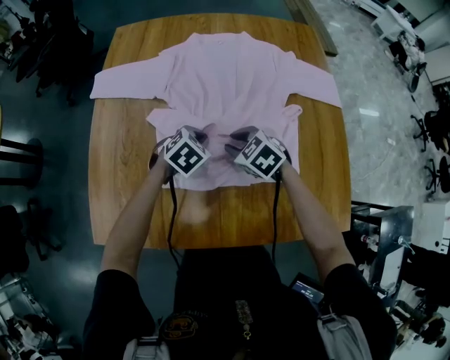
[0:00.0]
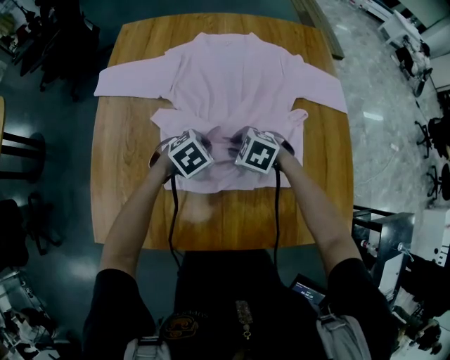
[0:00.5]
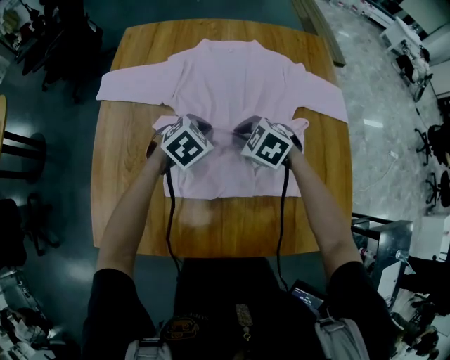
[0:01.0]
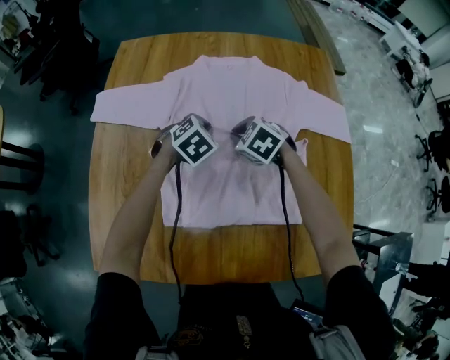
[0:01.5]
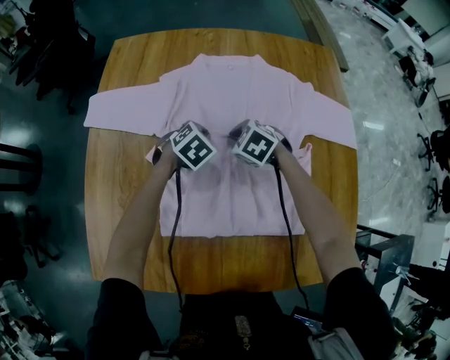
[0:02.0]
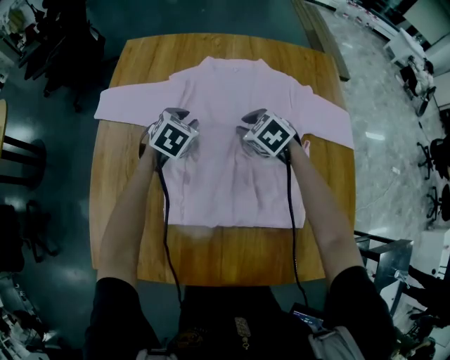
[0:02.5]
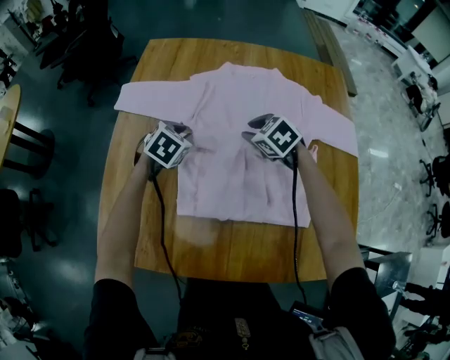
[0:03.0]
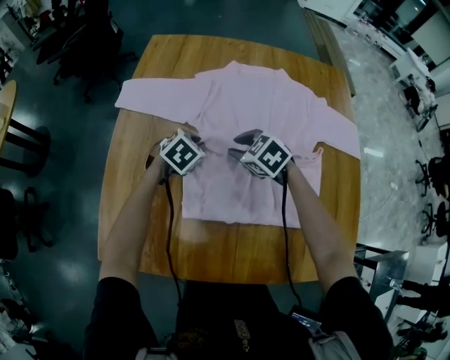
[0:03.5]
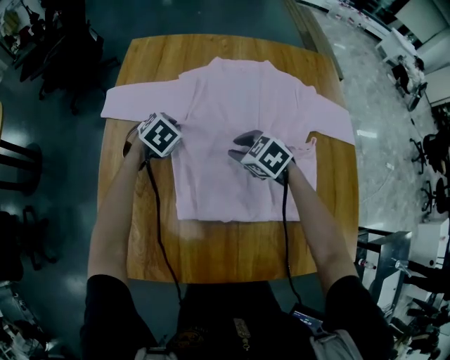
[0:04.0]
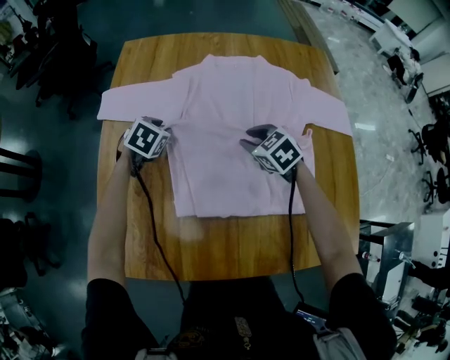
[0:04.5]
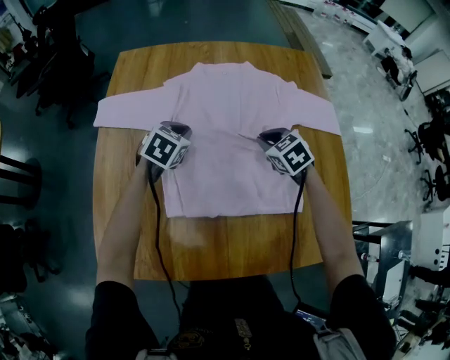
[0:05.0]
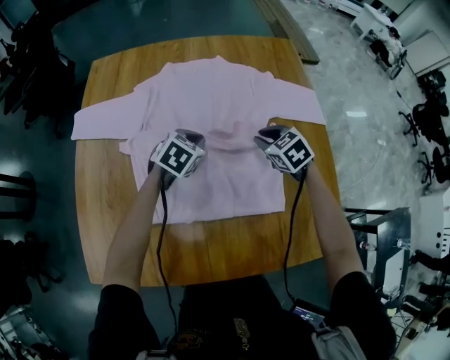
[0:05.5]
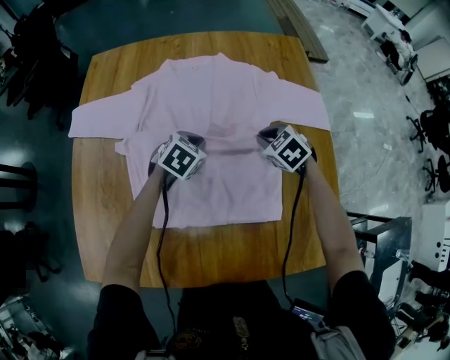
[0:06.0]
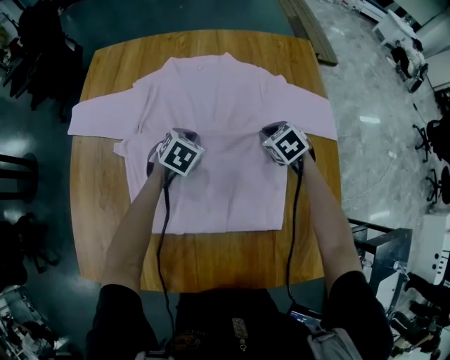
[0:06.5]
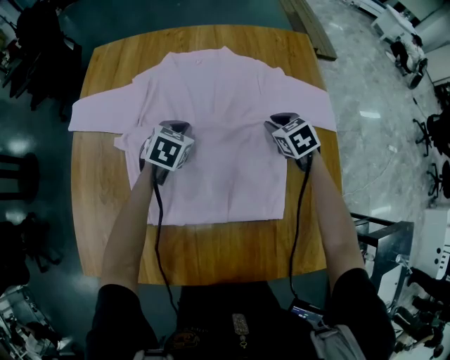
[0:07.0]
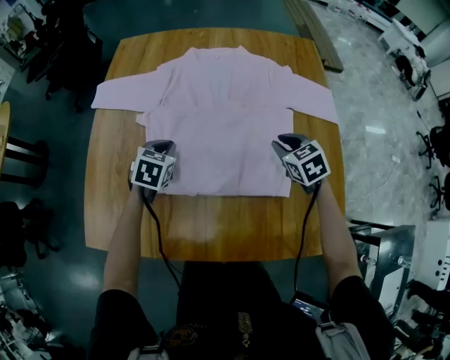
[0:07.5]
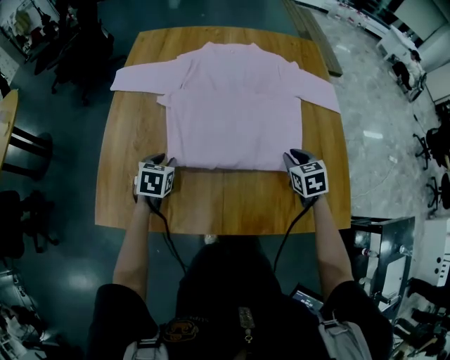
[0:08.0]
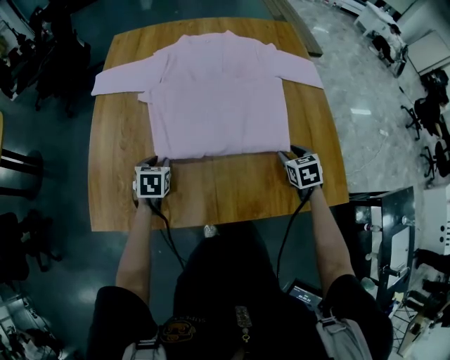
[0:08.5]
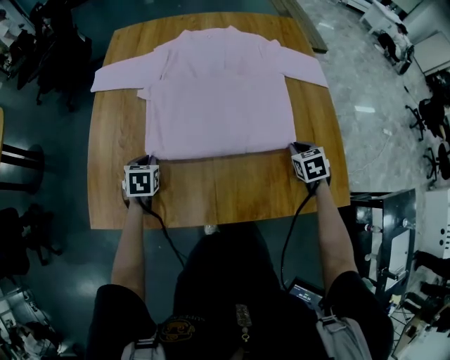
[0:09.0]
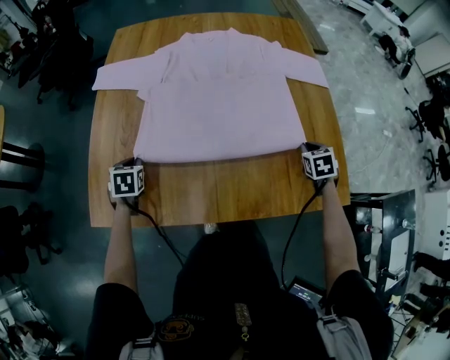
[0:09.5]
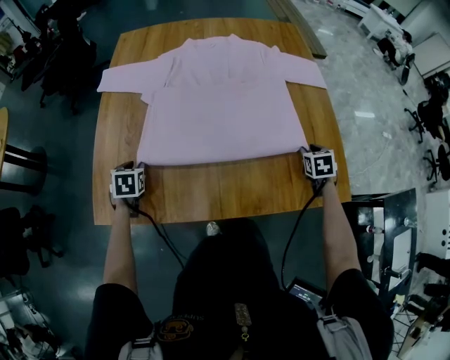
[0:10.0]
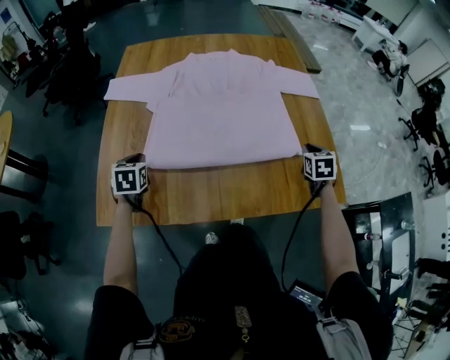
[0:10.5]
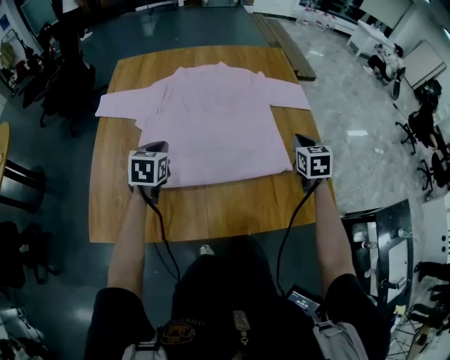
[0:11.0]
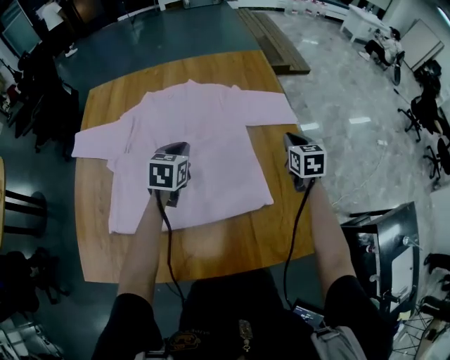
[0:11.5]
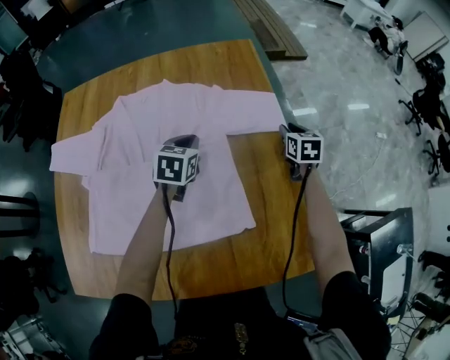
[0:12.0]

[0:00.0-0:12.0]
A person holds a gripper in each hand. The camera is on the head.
0:00.0 to 0:02.0: The two grippers go roughly 15 cm forward.
0:02.0 to 0:04.0: The right gripper heads backward, to the left and upward, covering about 10 cm, and opens its fingers. Meanwhile the left gripper travels to the left by approximately 15 cm.
0:04.0 to 0:06.0: Both grippers travel together to the right, about 25 cm. The right gripper closes its fingers.
0:06.0 to 0:08.0: The left gripper moves to the left and backward, roughly 30 cm, turns by roughly 30 degrees, and opens, while the right gripper is displaced backward by some 20 cm, and turns by about 30 degrees.
0:08.0 to 0:10.0: The left gripper travels to the left by about 10 cm. The right gripper travels to the right by approximately 10 cm, and turns by roughly 20 degrees.
0:10.0 to 0:12.0: The right gripper is displaced forward and to the right by about 35 cm, rotates roughly 20 degrees, and closes and opens again, while the left gripper shifts roughly 60 cm to the right and forward, changes its angle by approximately 30 degrees, and closes up.

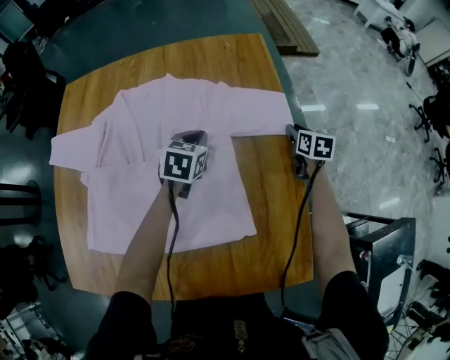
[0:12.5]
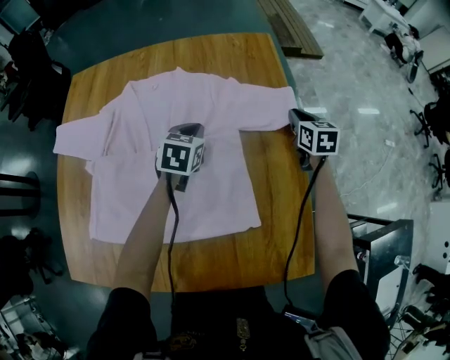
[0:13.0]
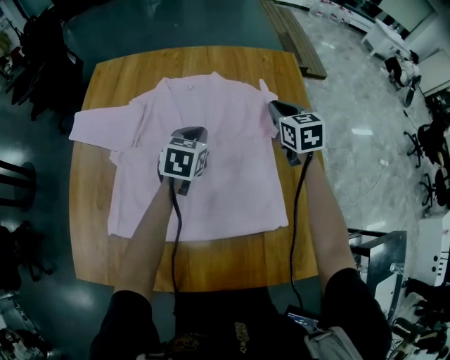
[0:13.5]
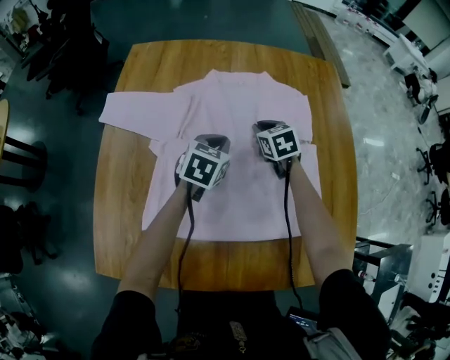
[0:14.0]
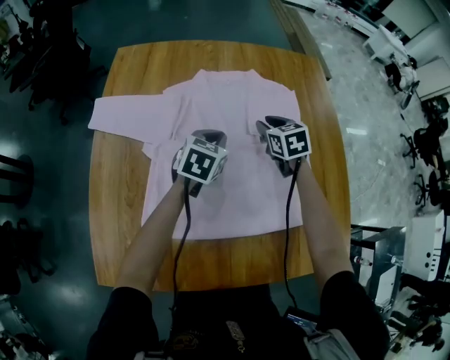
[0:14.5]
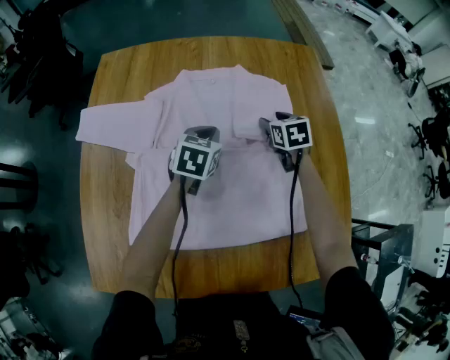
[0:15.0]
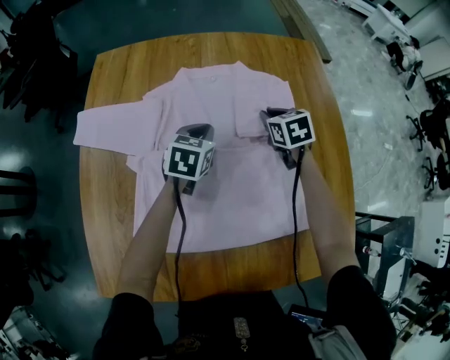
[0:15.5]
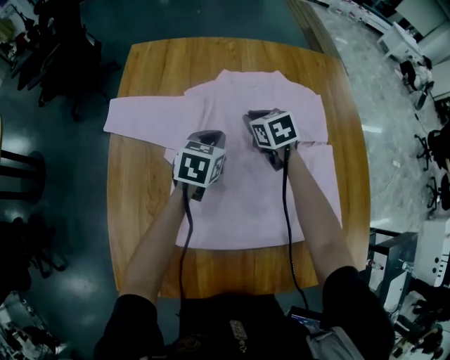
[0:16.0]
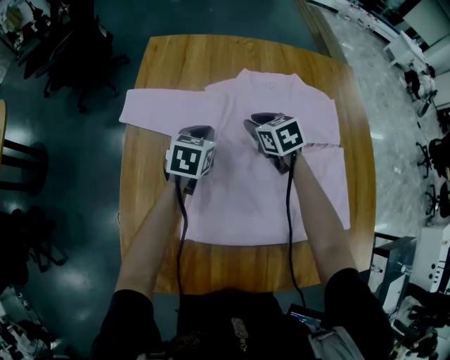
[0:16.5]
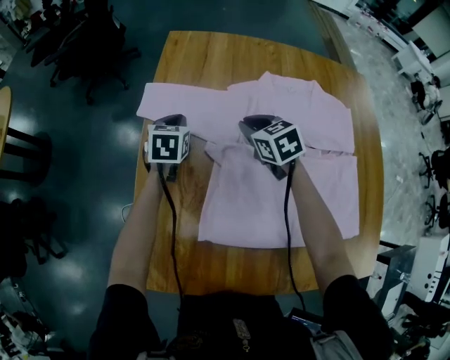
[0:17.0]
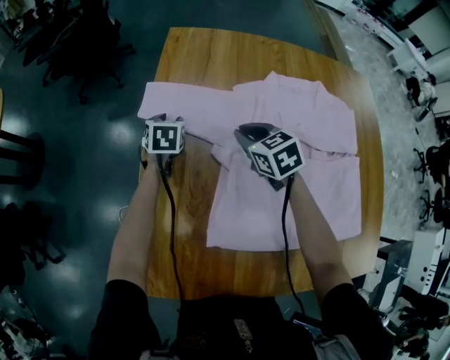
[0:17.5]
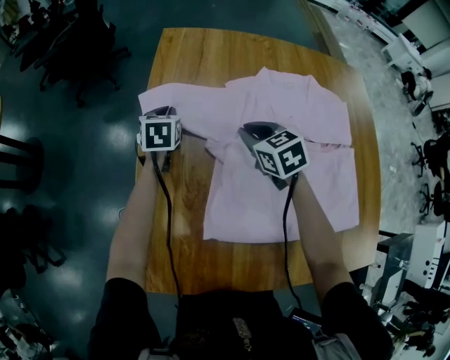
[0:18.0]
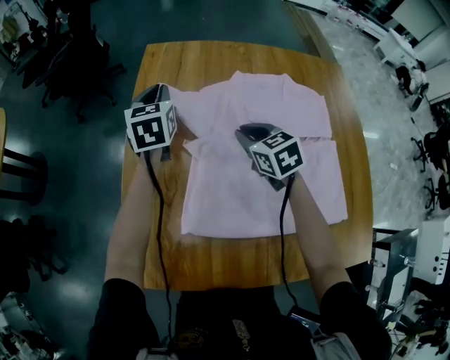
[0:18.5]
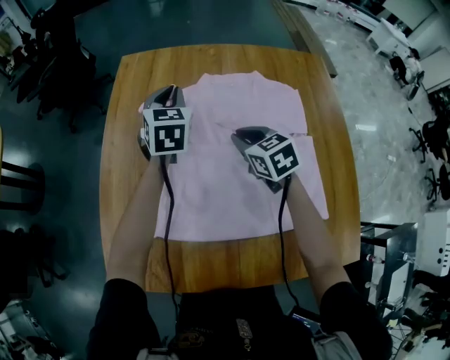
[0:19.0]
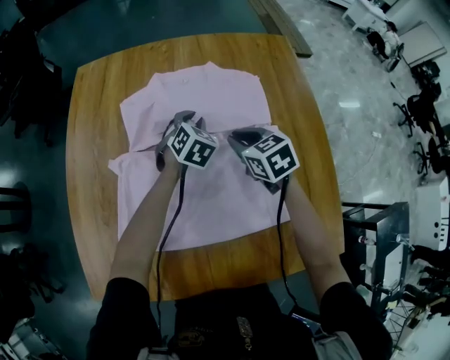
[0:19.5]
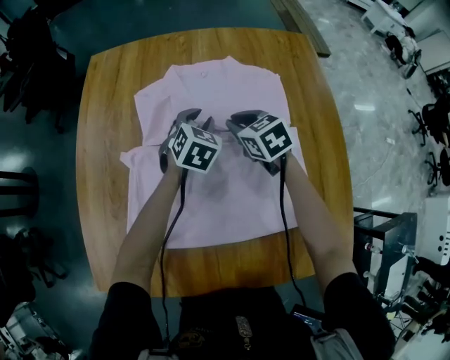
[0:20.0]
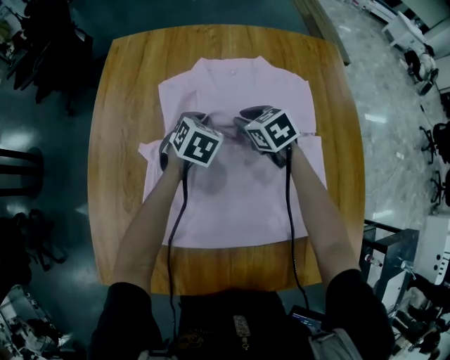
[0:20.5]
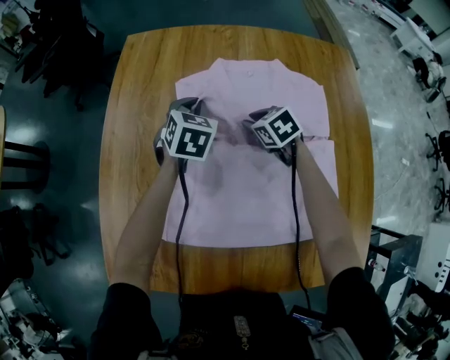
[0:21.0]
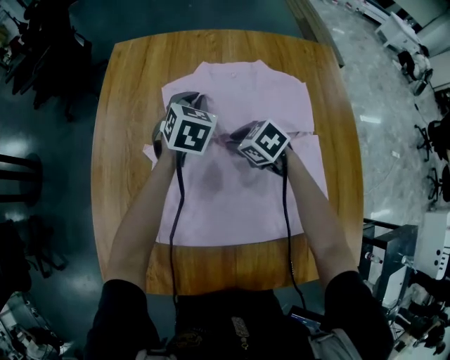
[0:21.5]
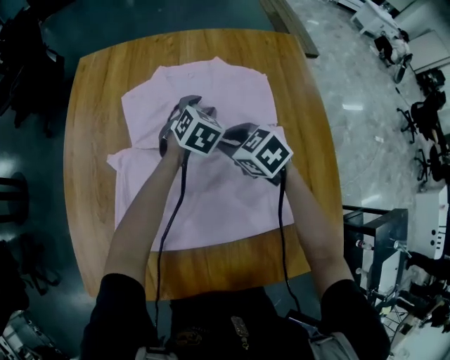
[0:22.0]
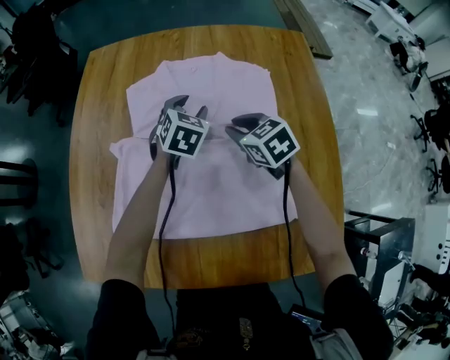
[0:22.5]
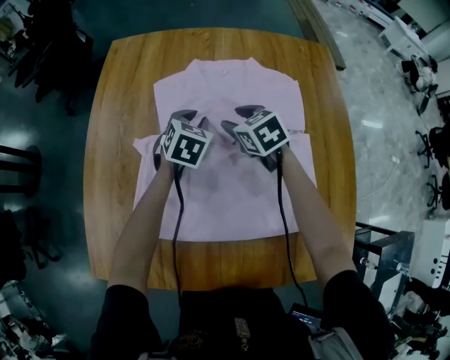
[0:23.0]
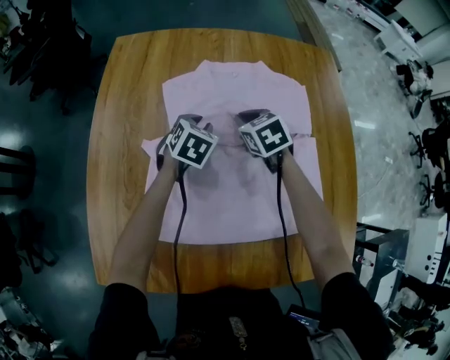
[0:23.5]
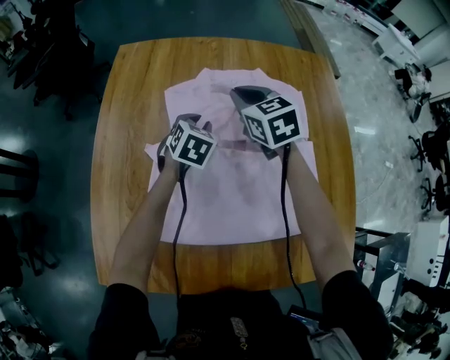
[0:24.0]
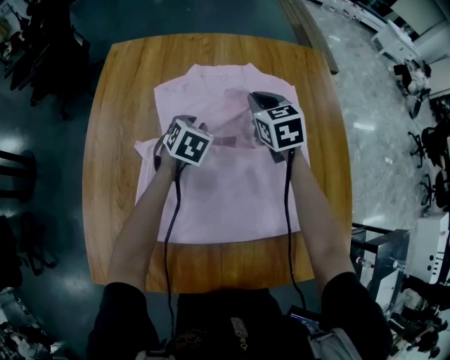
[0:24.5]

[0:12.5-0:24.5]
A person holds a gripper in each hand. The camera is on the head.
0:12.5 to 0:14.5: The left gripper is displaced to the left by some 25 cm; the right gripper heads to the left, covering about 40 cm, and swivels some 30 degrees.
0:14.5 to 0:16.5: Both grippers move to the left, about 20 cm. The right gripper opens and closes again.
0:16.5 to 0:18.5: The left gripper goes roughly 20 cm upward, to the left and forward, swivels approximately 30 degrees, and opens, then closes again. Meanwhile the right gripper goes approximately 10 cm backward and upward, and goes to the left and returns, roughly 15 cm each way.
0:18.5 to 0:20.5: The right gripper shifts approximately 15 cm to the right and downward. Meanwhile the left gripper goes approximately 30 cm to the right and downward, and swivels some 40 degrees.
0:20.5 to 0:22.5: The right gripper goes about 10 cm backward and to the right. The left gripper is displaced to the right by roughly 10 cm, and opens up.
0:22.5 to 0:24.5: The left gripper travels to the left by roughly 10 cm, and closes up; the right gripper travels forward and upward by approximately 10 cm, swivels some 20 degrees, and opens and closes again.

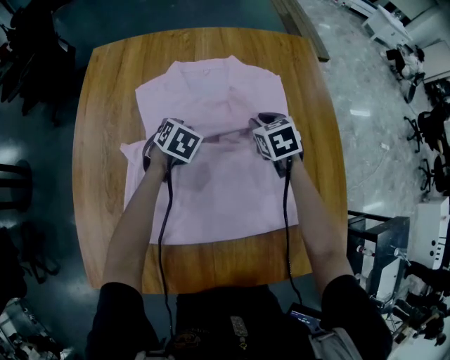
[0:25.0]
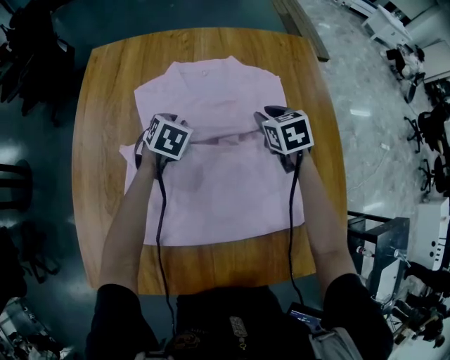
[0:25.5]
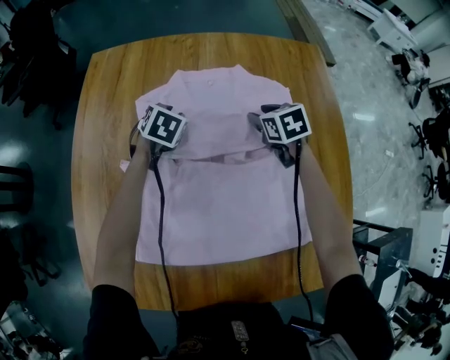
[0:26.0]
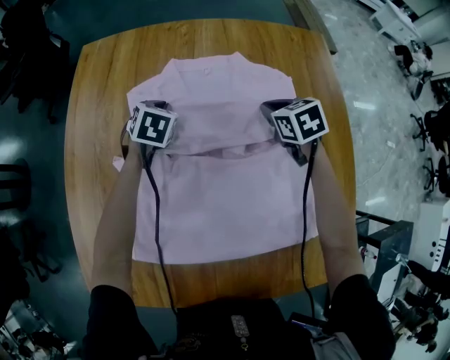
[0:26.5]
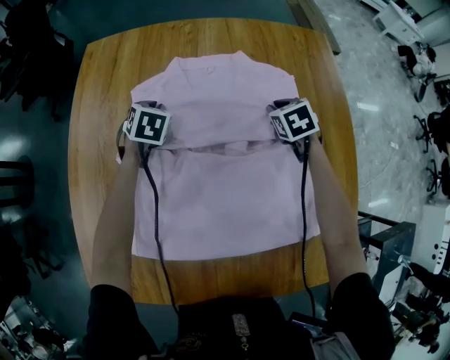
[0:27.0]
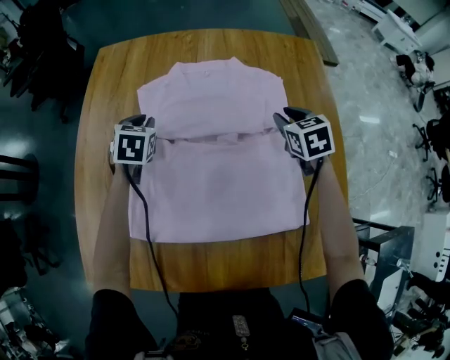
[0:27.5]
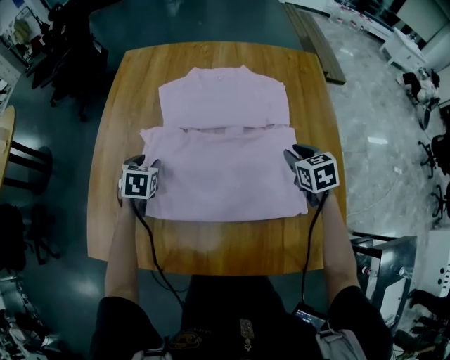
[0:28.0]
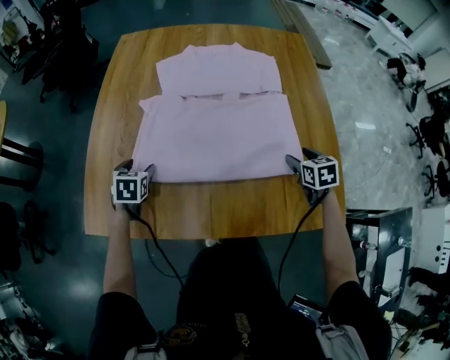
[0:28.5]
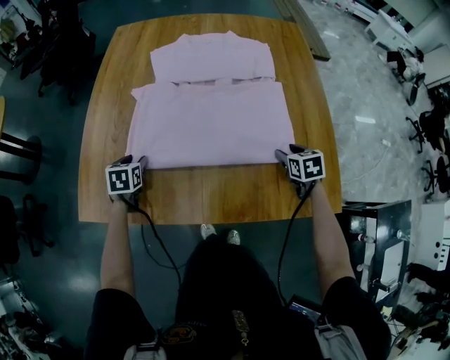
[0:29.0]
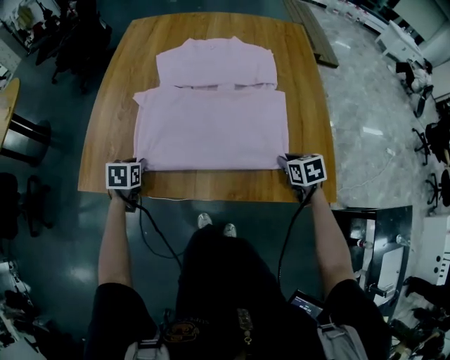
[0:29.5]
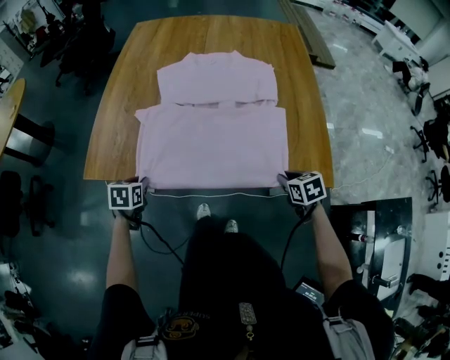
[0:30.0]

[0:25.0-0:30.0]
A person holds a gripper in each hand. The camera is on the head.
0:25.0 to 0:27.5: The right gripper heads to the right, covering roughly 5 cm; the left gripper moves to the left and upward, approximately 10 cm, goes forward and returns, approximately 10 cm each way, and rotates some 20 degrees.
0:27.5 to 0:30.0: The two grippers travel together, backward, roughly 50 cm. The right gripper opens, then closes again. Meanwhile the left gripper swivels about 20 degrees, and opens, then closes again.
